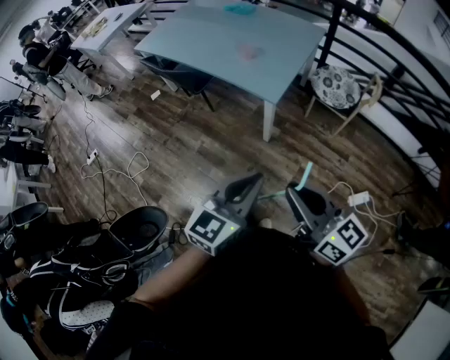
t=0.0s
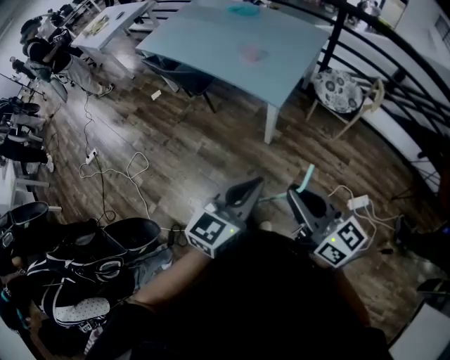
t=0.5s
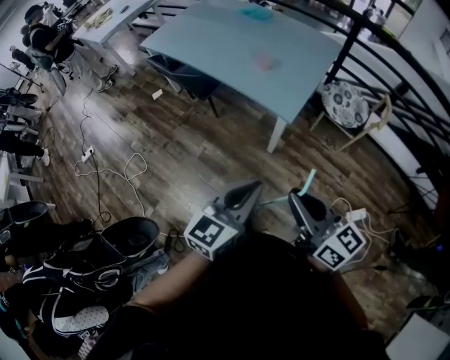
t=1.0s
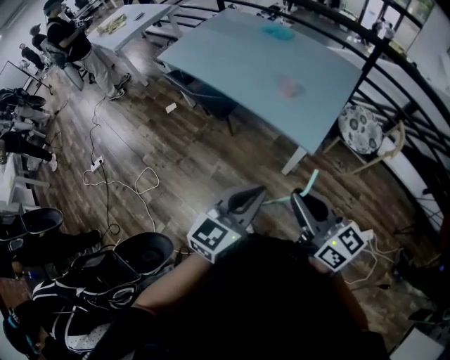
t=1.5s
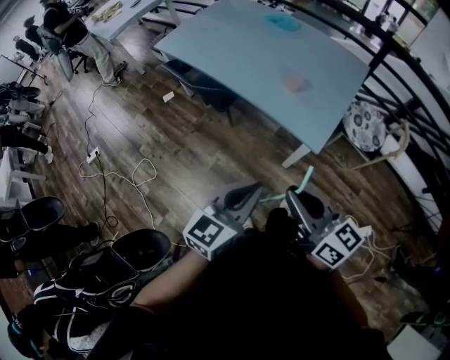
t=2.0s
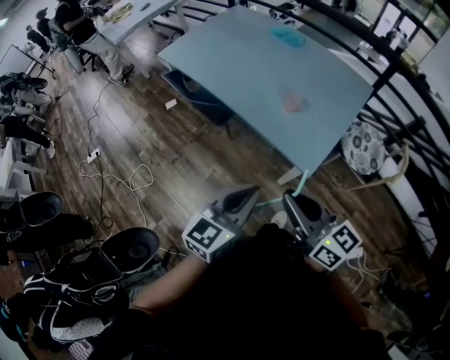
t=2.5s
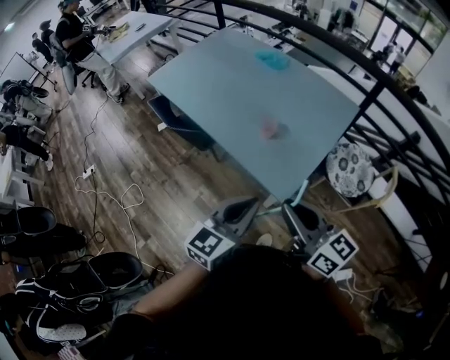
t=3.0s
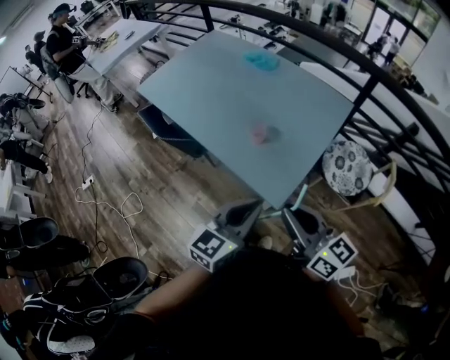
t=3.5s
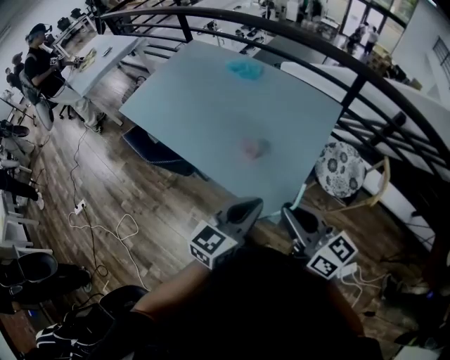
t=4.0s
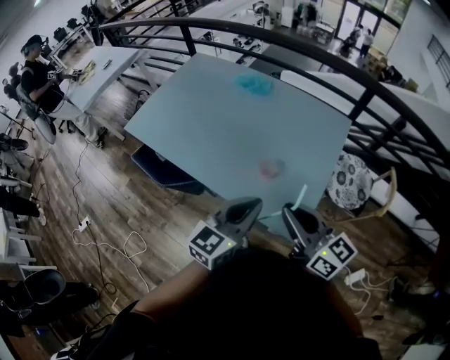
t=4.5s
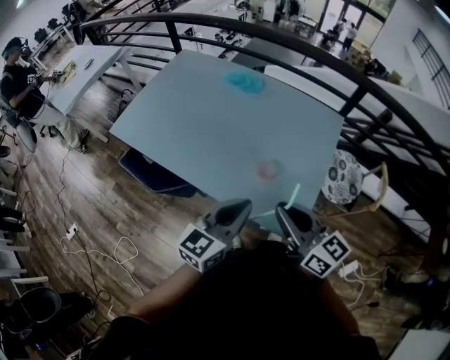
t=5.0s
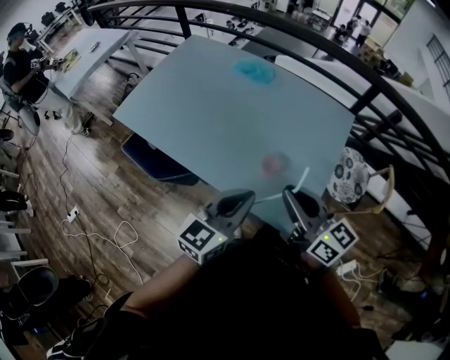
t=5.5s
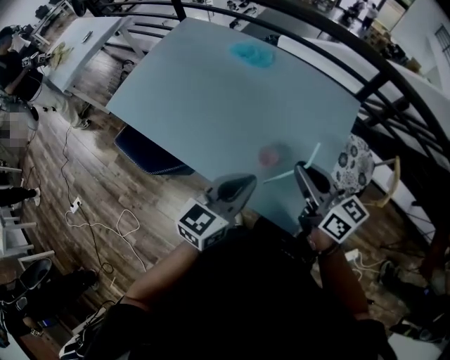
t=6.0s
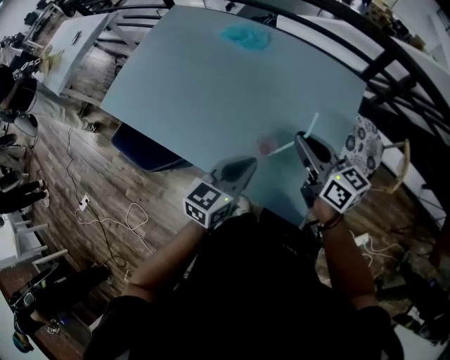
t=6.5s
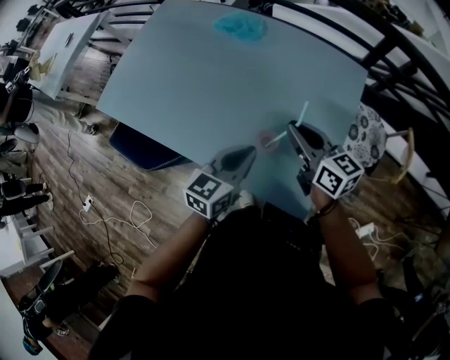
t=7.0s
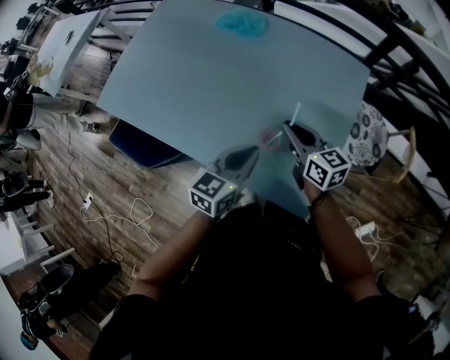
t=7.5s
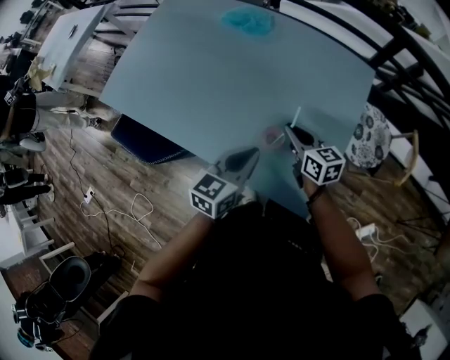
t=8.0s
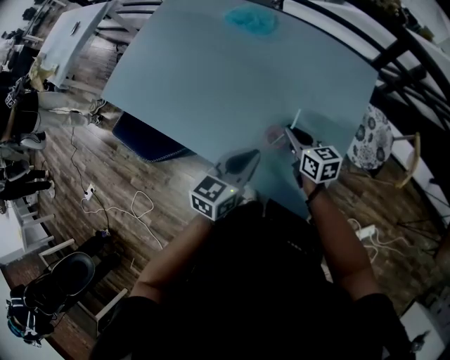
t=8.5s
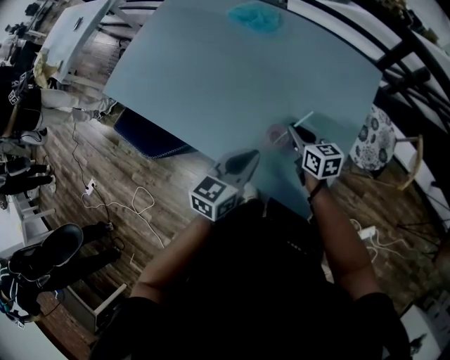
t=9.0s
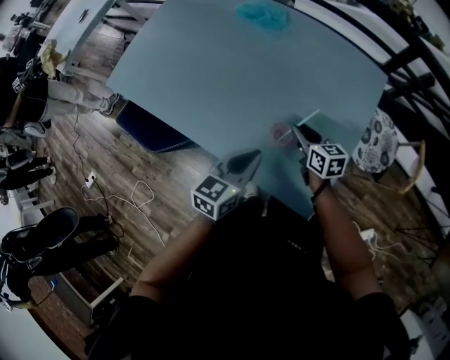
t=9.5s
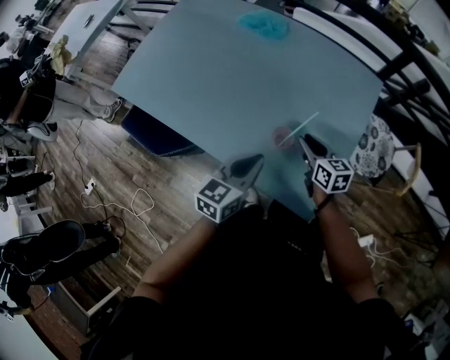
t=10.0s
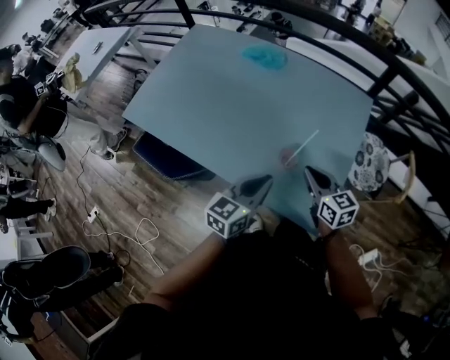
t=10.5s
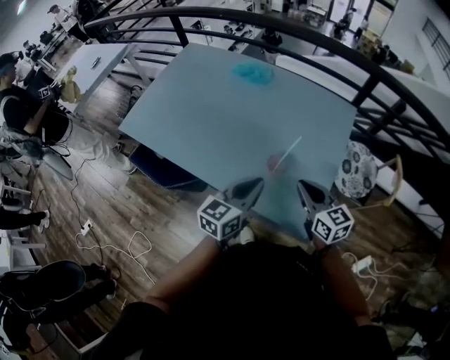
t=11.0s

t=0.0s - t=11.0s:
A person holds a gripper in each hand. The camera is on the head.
t=0.0s - t=2.0s: Both grippers move forward and to the left, about 25 cm.
t=2.0s - t=3.5s: Both grippers travel together to the right and forward, about 25 cm.
t=3.5s - t=5.5s: Both grippers travel together forward and to the left, about 25 cm.
t=5.5s - t=7.5s: The two grippers go approximately 20 cm downward and forward.
t=7.5s - t=9.0s: The right gripper moves downward, about 10 cm.
t=9.0s - t=11.0s: The left gripper travels upward and backward by some 10 cm. Meanwhile the right gripper is displaced upward and backward by roughly 20 cm.

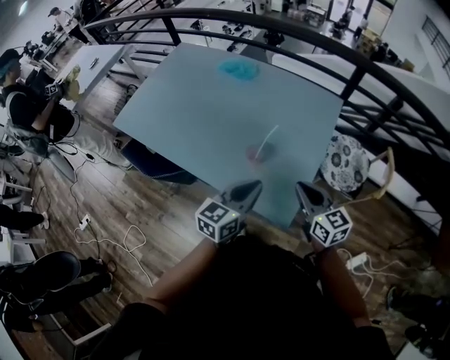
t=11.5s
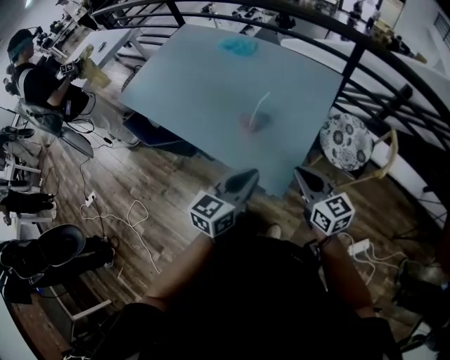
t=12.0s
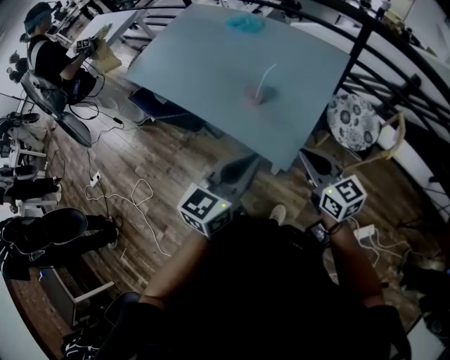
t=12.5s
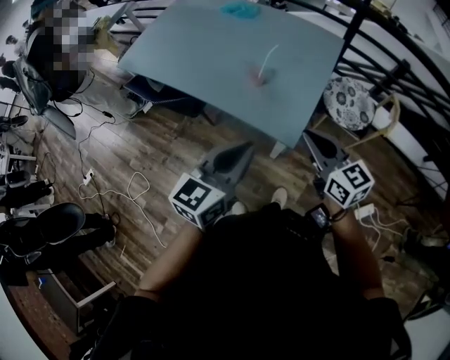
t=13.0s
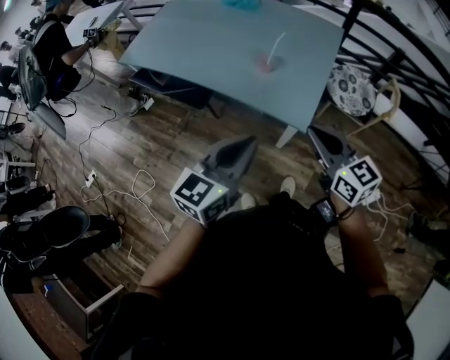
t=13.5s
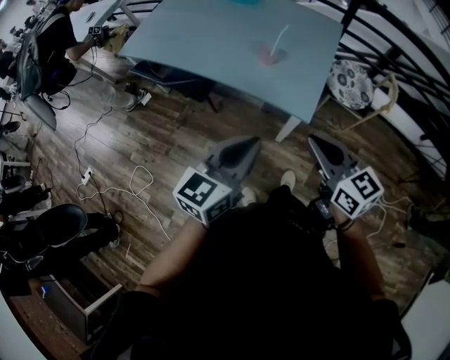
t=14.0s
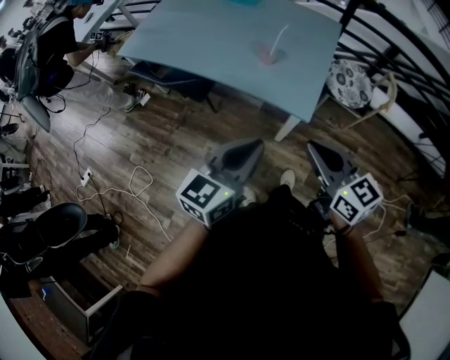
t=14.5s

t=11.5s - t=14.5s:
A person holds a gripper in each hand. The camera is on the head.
t=11.5s - t=13.0s: The grippers both shift backward by about 20 cm.
t=13.0s - t=14.5s: Both grippers travel together backward and to the left, about 15 cm.

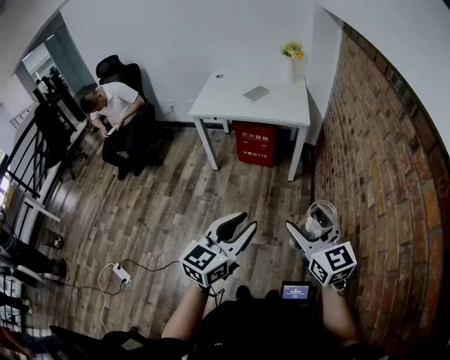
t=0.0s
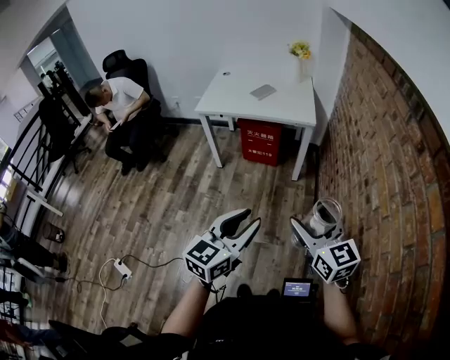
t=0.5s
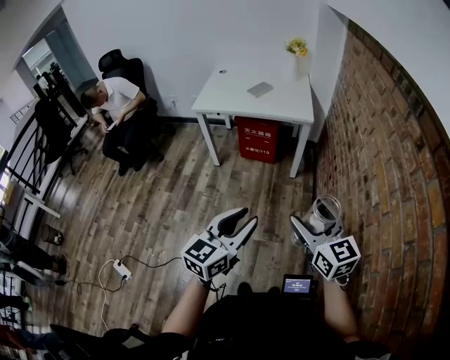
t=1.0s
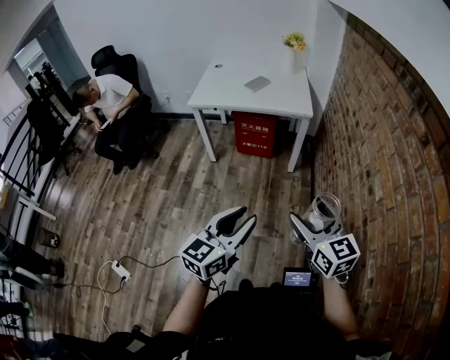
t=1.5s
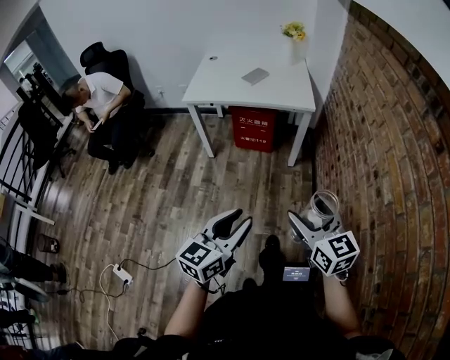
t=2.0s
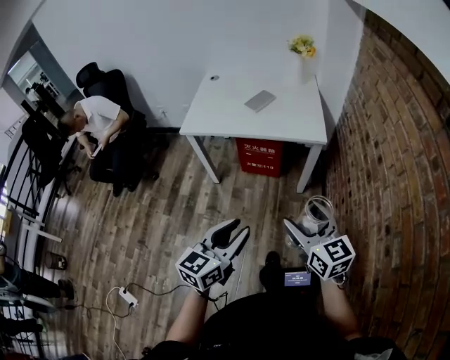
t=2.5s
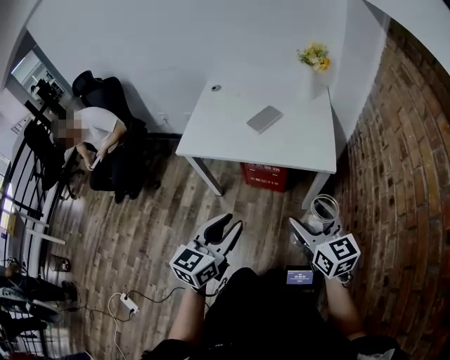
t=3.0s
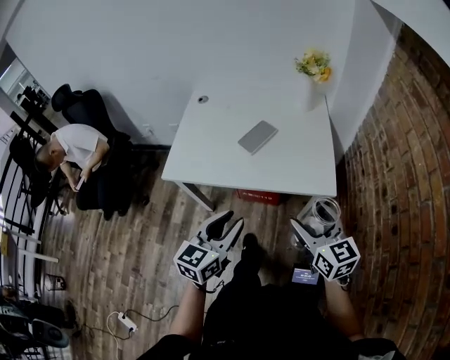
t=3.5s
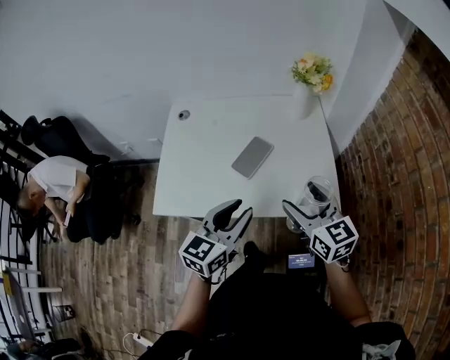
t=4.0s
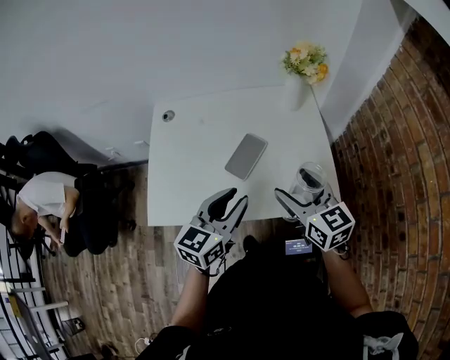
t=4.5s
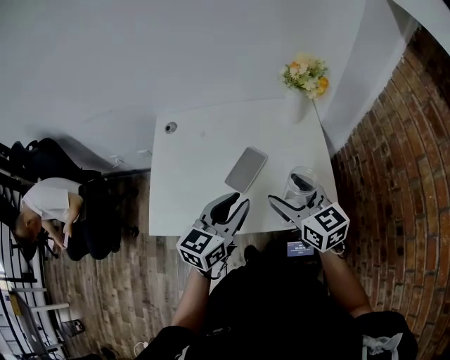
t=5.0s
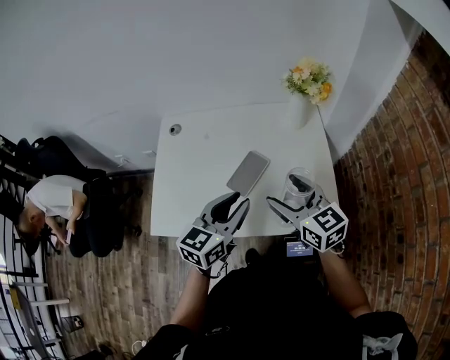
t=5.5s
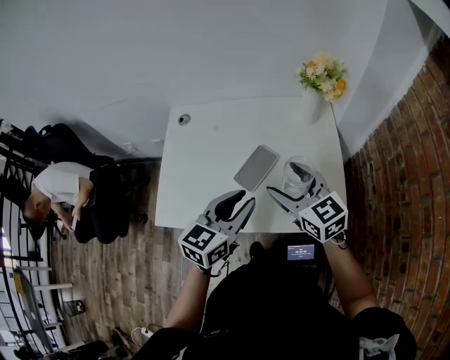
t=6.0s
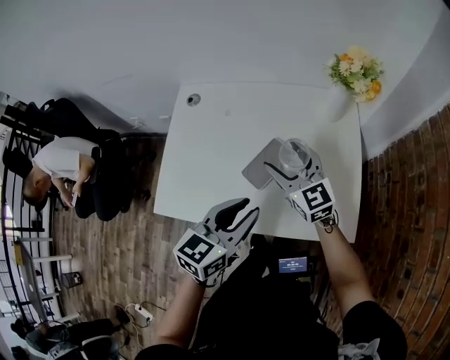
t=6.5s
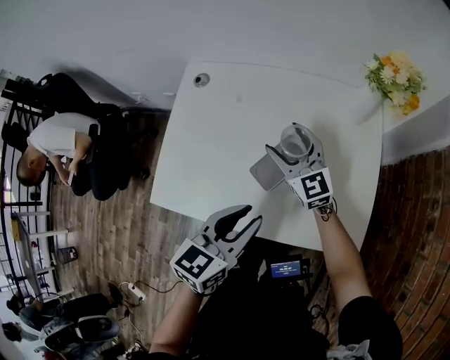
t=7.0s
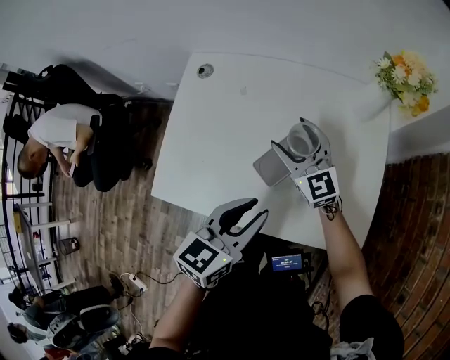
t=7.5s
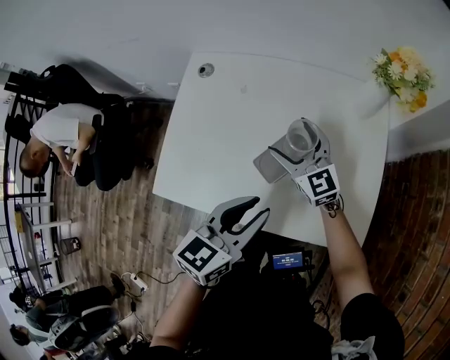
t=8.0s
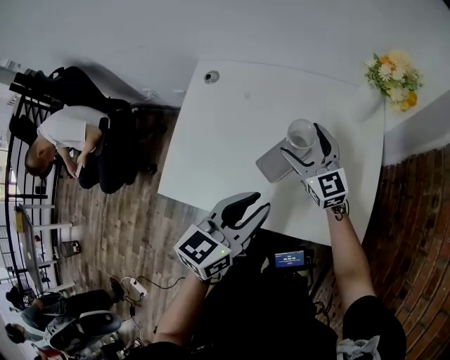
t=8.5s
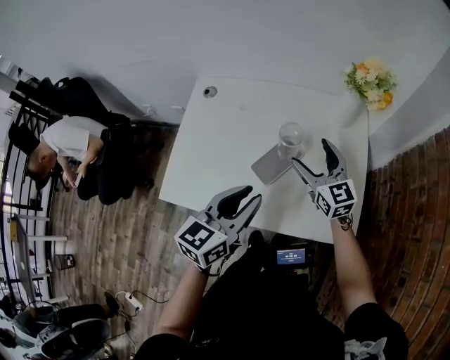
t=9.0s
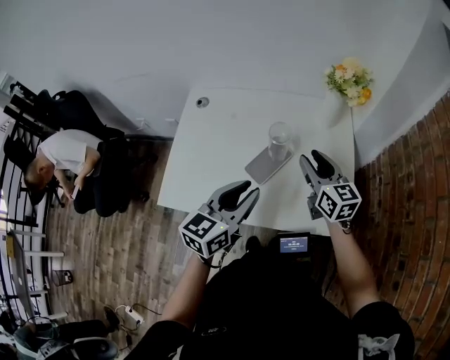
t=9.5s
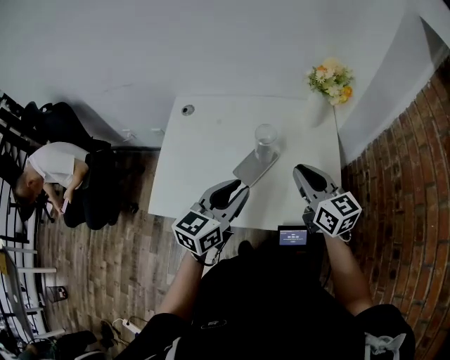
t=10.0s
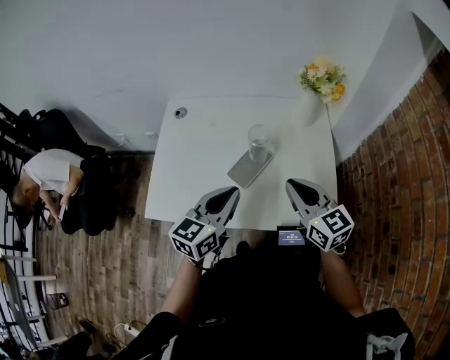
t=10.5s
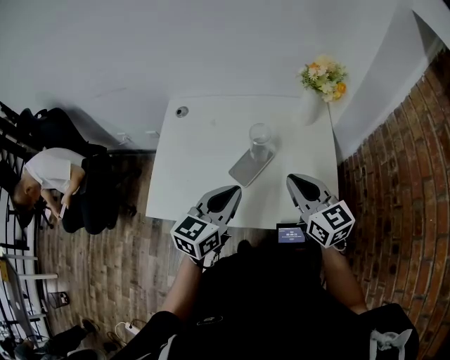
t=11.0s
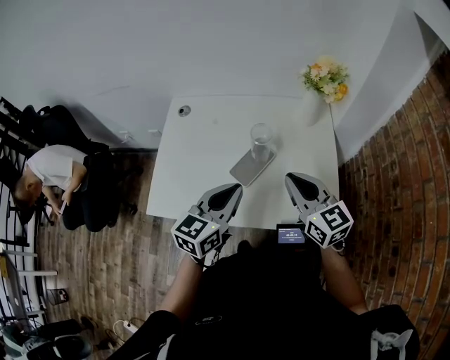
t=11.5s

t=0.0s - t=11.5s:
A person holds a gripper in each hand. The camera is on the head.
t=0.0s - t=2.0s: The left gripper travels to the left and downward by about 10 cm. The right gripper shifts some 10 cm forward, to the left and downward.
t=2.0s - t=4.0s: The pair of grippers is taken forward, about 70 cm.
t=4.0s - t=6.0s: Both grippers travel together forward, some 10 cm.
t=6.0s - t=7.5s: The left gripper shifts about 5 cm downward. Meanwhile the right gripper heads forward, downward and to the left, covering roughly 20 cm.
t=7.5s - t=9.5s: The right gripper heads to the right, backward and upward, covering some 15 cm, turns by about 30 degrees, and closes its fingers; the left gripper goes approximately 5 cm upward.
t=9.5s - t=11.5s: The left gripper closes. The right gripper shifts some 10 cm backward, and closes its fingers.

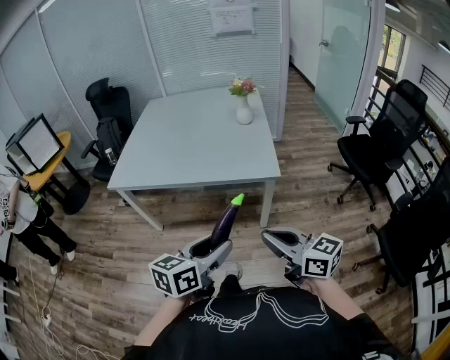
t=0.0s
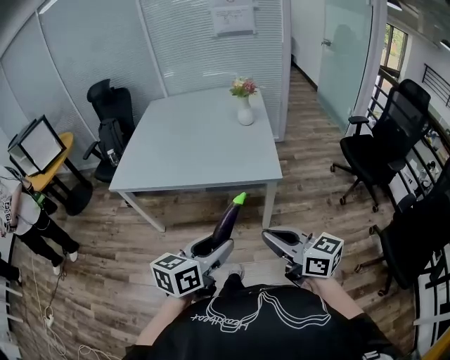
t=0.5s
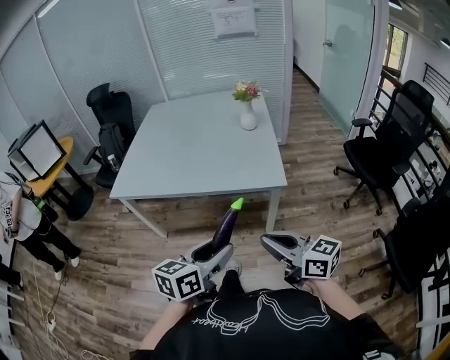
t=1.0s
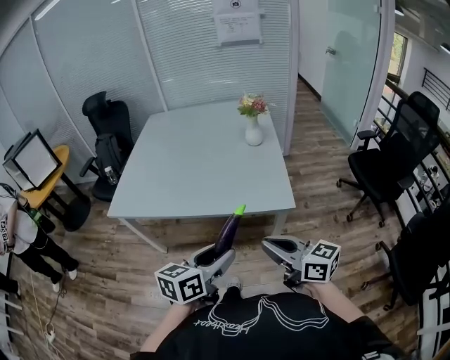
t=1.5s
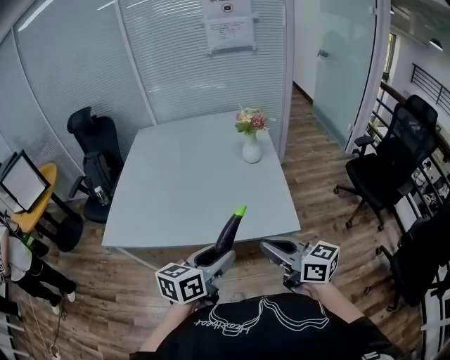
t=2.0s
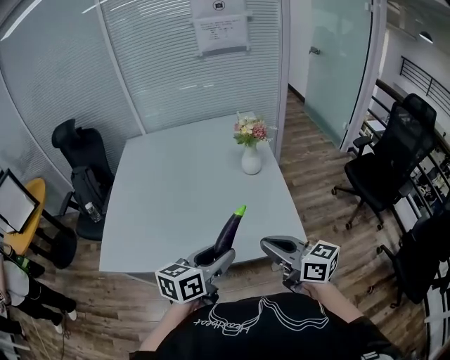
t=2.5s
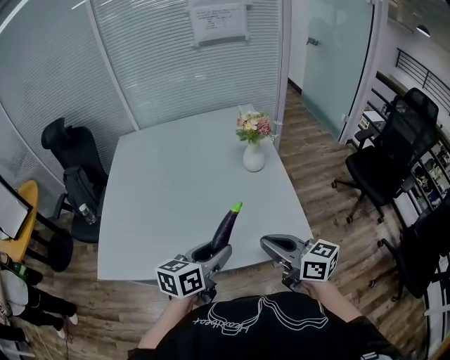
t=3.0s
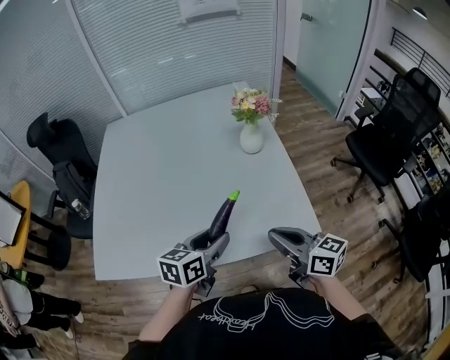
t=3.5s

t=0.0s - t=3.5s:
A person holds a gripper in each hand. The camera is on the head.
t=0.0s - t=2.0s: Both grippers move forward, about 30 cm.
t=2.0s - t=3.5s: The right gripper heads forward, covering some 15 cm, while the left gripper moves forward and downward, approximately 25 cm.
